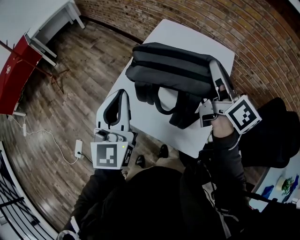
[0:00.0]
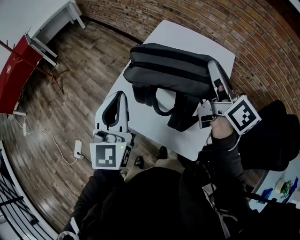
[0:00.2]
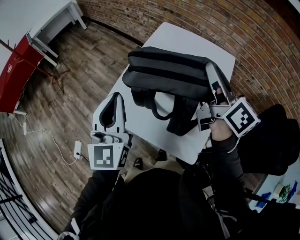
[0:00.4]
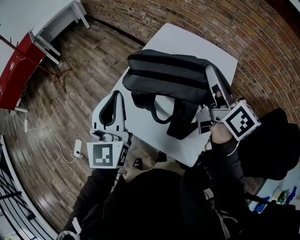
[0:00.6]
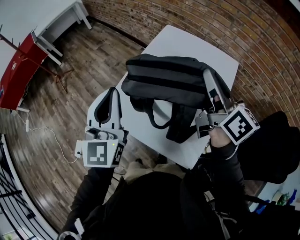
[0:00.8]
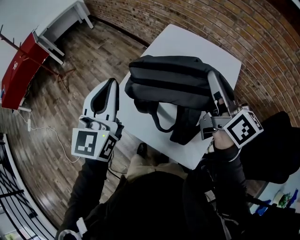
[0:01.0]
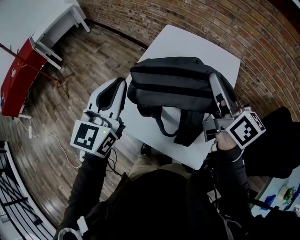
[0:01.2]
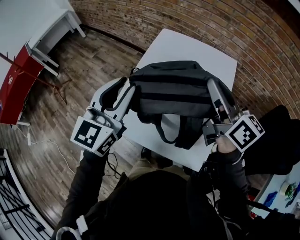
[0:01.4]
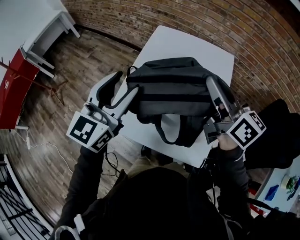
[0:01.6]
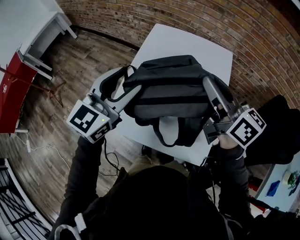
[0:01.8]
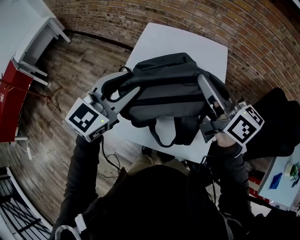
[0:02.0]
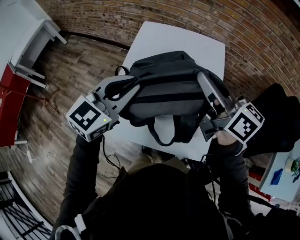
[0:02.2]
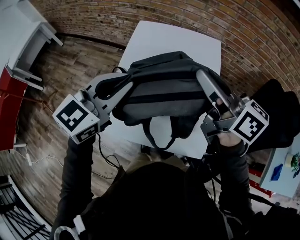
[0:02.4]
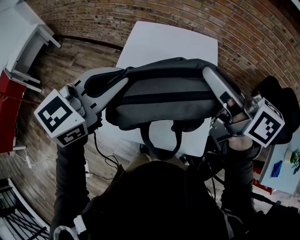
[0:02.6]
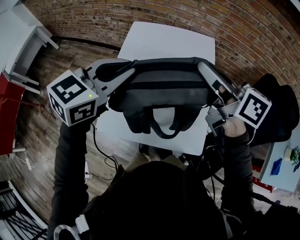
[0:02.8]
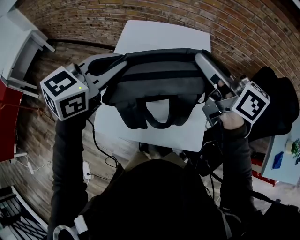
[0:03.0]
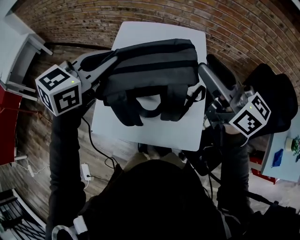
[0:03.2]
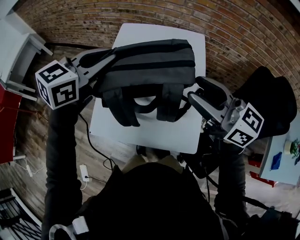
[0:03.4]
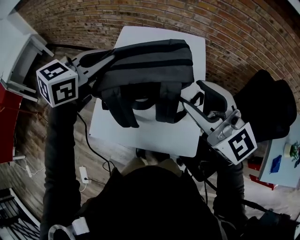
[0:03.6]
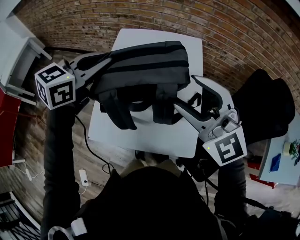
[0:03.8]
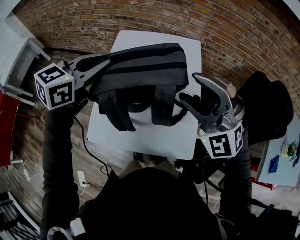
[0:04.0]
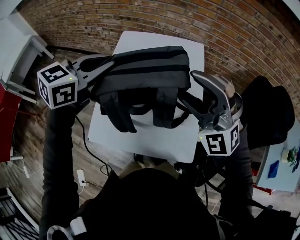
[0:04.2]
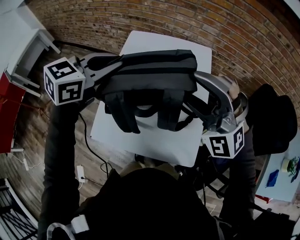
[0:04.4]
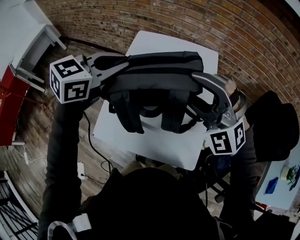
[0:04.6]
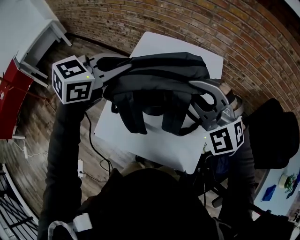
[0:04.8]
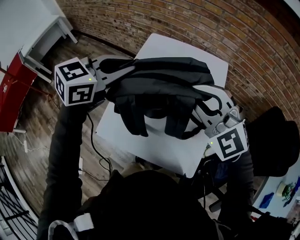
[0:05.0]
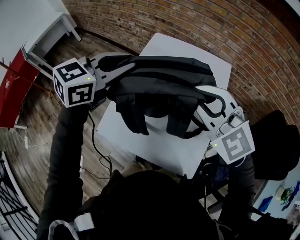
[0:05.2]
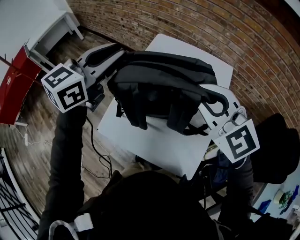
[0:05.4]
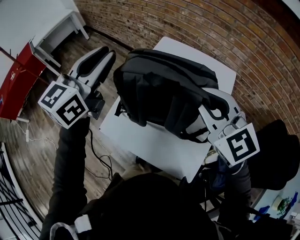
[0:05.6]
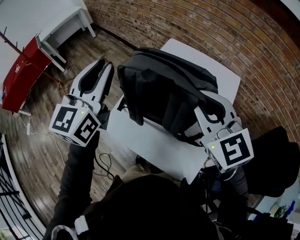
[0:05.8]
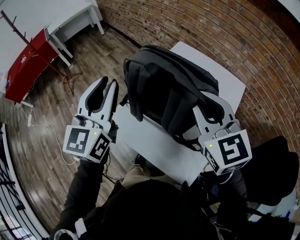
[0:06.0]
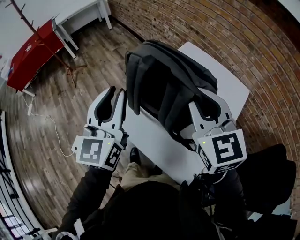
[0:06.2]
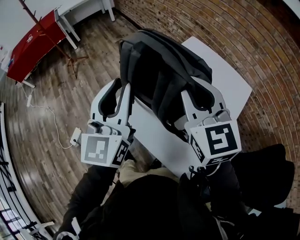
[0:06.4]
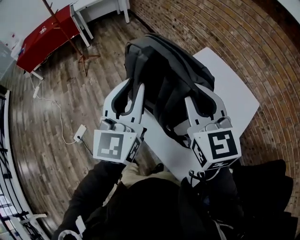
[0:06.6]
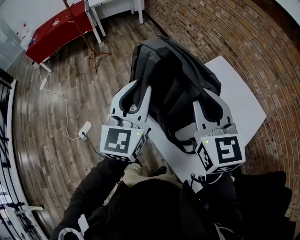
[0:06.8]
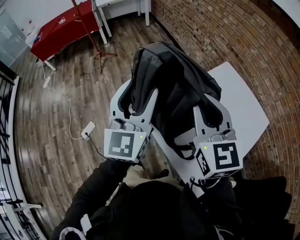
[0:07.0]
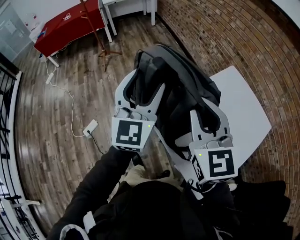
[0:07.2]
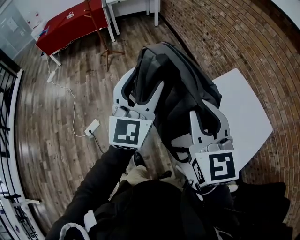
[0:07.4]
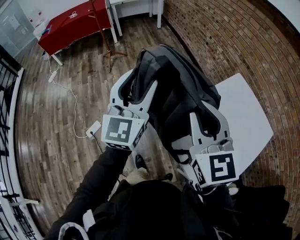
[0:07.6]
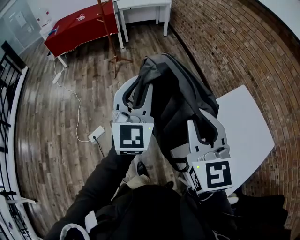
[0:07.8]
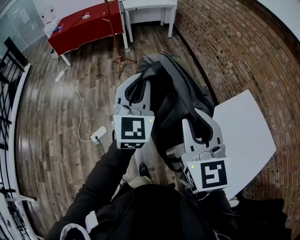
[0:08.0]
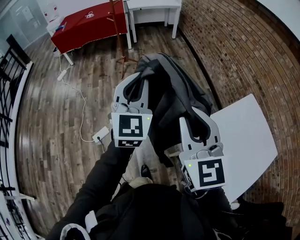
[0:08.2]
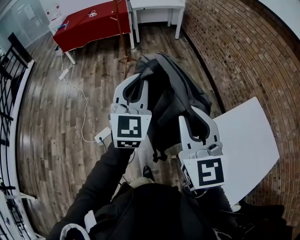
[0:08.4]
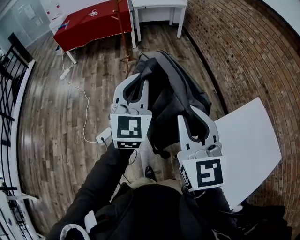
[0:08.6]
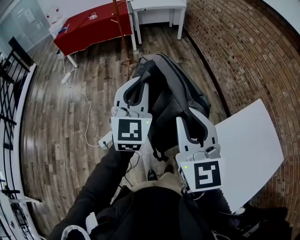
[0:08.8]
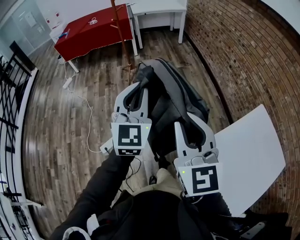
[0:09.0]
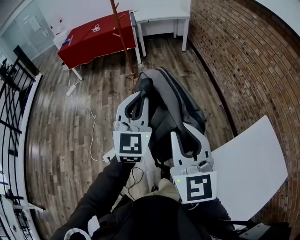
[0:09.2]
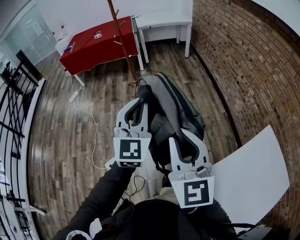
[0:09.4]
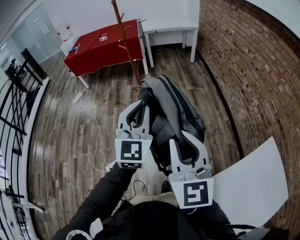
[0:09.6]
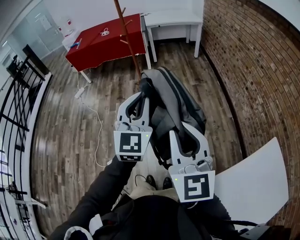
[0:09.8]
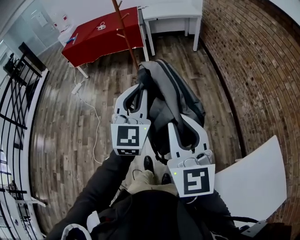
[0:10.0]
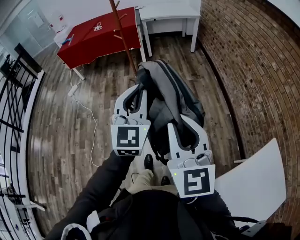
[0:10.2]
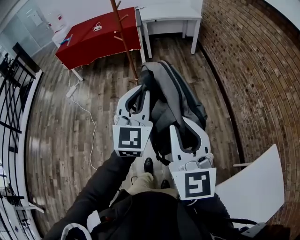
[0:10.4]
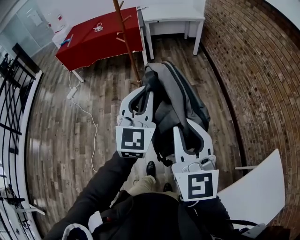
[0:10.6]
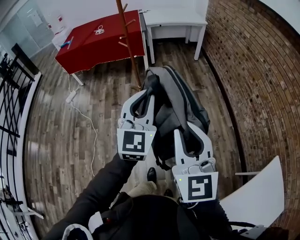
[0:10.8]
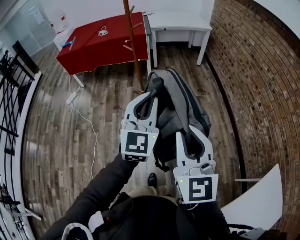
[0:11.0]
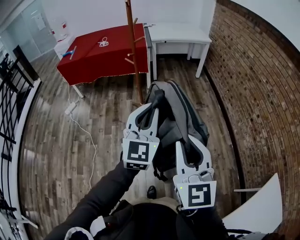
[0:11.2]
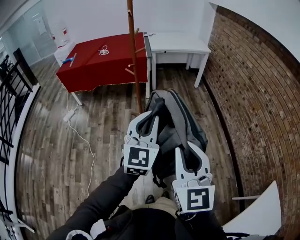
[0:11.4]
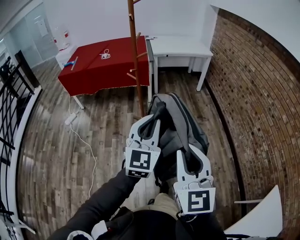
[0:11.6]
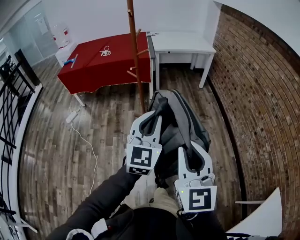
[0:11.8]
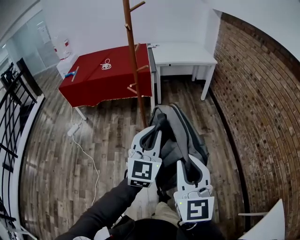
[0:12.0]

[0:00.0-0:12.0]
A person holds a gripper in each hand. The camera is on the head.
0:00.0 to 0:01.6: The left gripper is displaced forward by approximately 10 cm, turns by approximately 30 degrees, and opens.
0:01.6 to 0:03.0: The left gripper is displaced to the right by approximately 5 cm, swivels approximately 30 degrees, and closes its fingers.
0:03.0 to 0:04.4: The right gripper rotates around the line of its fingers by some 110 degrees, counterclockwise from behind, and opens up.
0:04.4 to 0:06.0: The right gripper shifts by about 5 cm, twists about 60 degrees clockwise, seen from behind, and closes its fingers. The left gripper ends up approximately 15 cm from where it was, and rotates approximately 60 degrees.
0:06.0 to 0:07.6: The grippers both shift to the left by about 25 cm. The left gripper swivels some 20 degrees, and opens its fingers.
0:07.6 to 0:09.0: The right gripper is displaced to the left and forward by some 20 cm; the left gripper goes roughly 20 cm forward and to the left, and closes.
0:09.0 to 0:10.4: The grippers both shift forward by about 30 cm.
0:10.4 to 0:12.0: Both grippers move forward and to the left, some 30 cm.

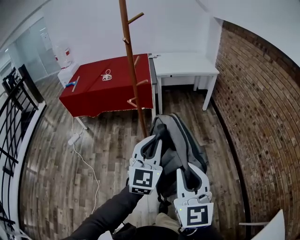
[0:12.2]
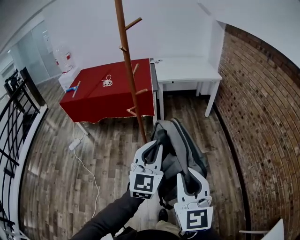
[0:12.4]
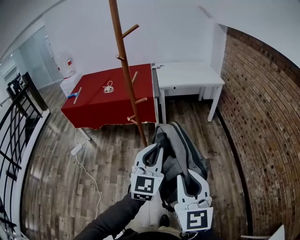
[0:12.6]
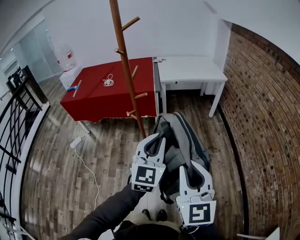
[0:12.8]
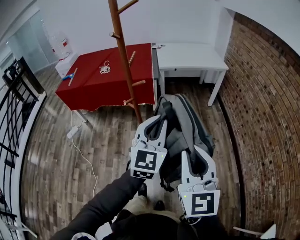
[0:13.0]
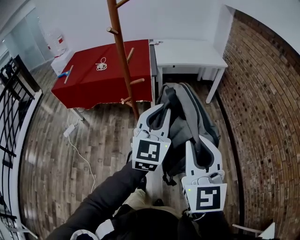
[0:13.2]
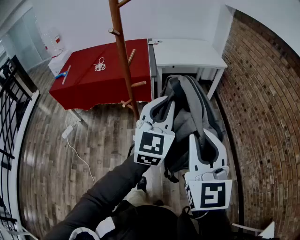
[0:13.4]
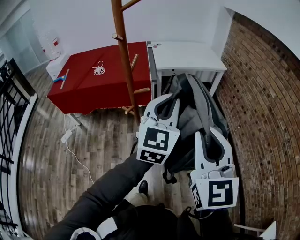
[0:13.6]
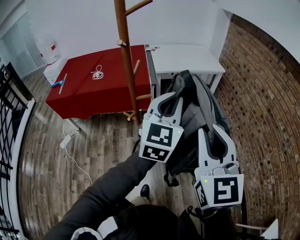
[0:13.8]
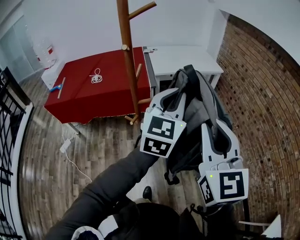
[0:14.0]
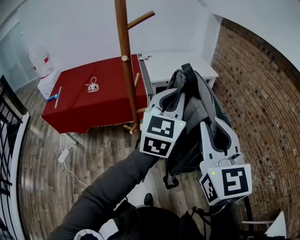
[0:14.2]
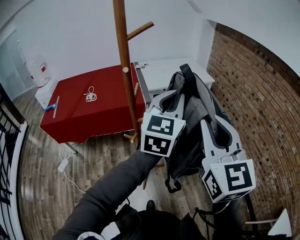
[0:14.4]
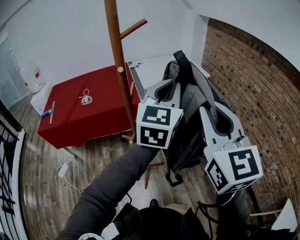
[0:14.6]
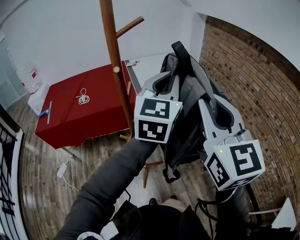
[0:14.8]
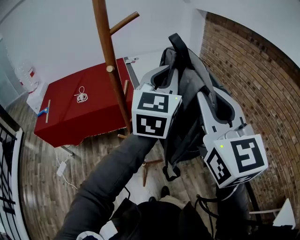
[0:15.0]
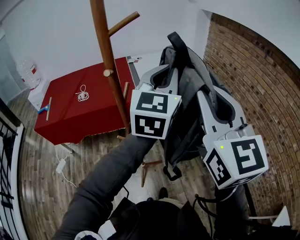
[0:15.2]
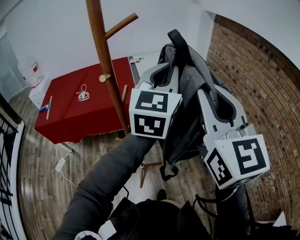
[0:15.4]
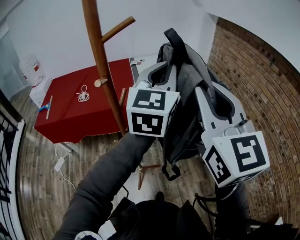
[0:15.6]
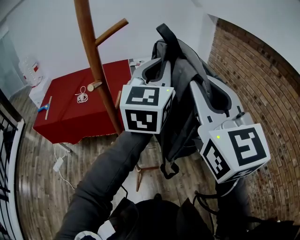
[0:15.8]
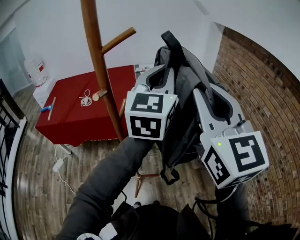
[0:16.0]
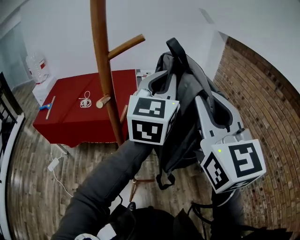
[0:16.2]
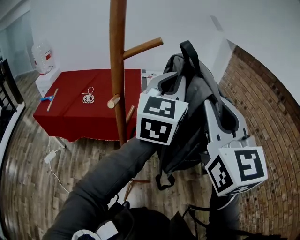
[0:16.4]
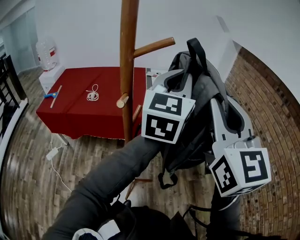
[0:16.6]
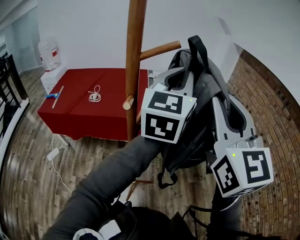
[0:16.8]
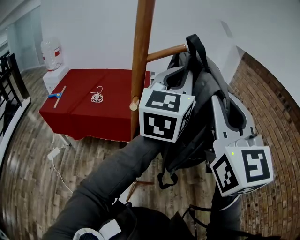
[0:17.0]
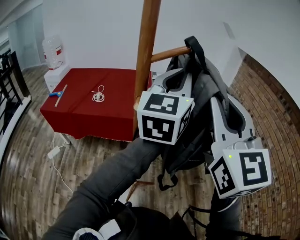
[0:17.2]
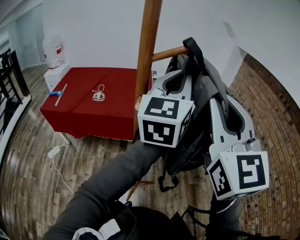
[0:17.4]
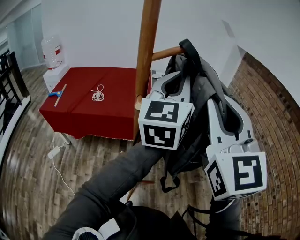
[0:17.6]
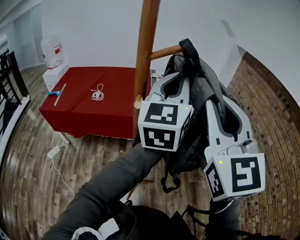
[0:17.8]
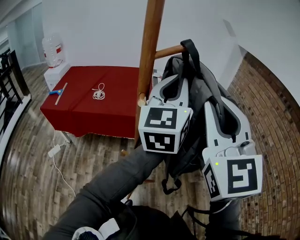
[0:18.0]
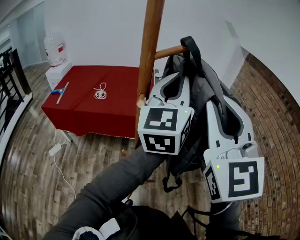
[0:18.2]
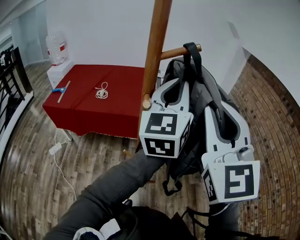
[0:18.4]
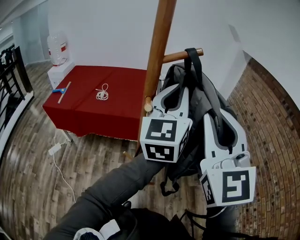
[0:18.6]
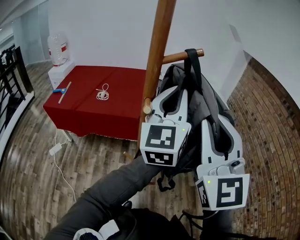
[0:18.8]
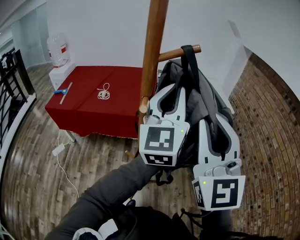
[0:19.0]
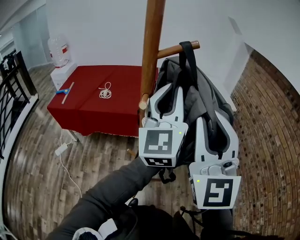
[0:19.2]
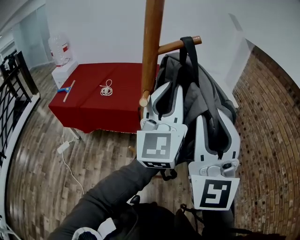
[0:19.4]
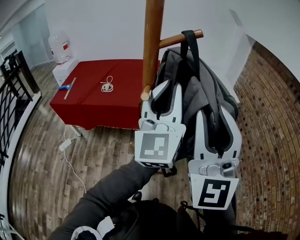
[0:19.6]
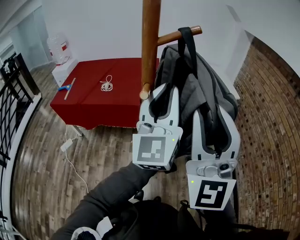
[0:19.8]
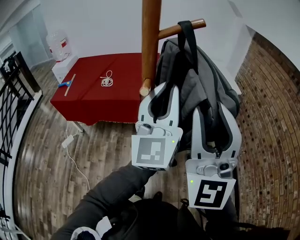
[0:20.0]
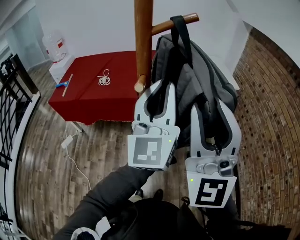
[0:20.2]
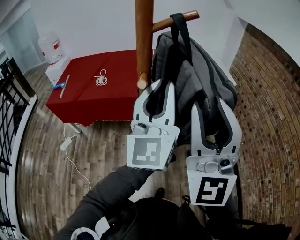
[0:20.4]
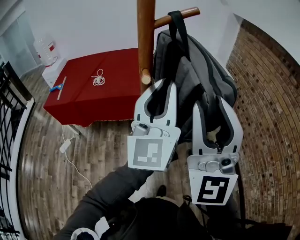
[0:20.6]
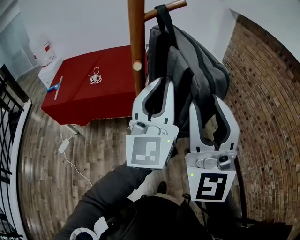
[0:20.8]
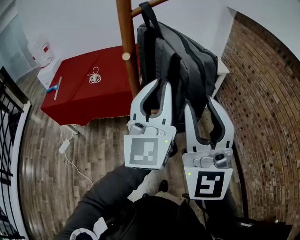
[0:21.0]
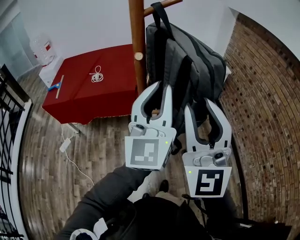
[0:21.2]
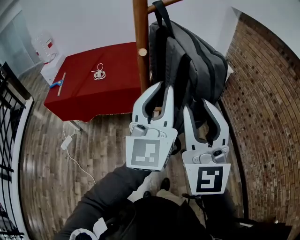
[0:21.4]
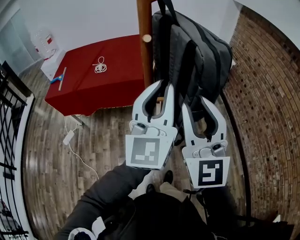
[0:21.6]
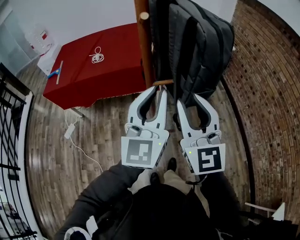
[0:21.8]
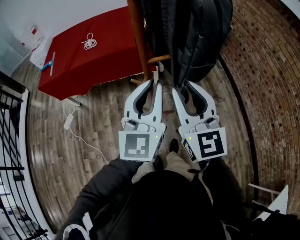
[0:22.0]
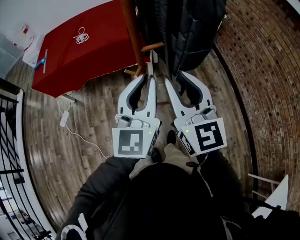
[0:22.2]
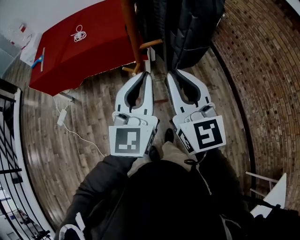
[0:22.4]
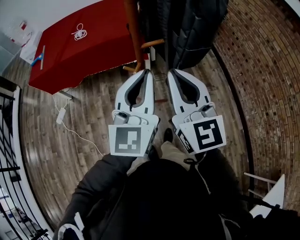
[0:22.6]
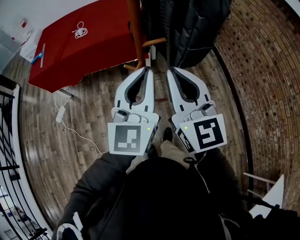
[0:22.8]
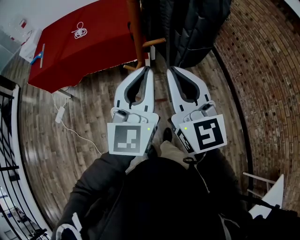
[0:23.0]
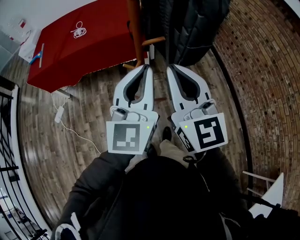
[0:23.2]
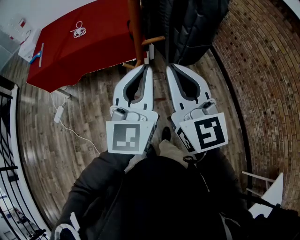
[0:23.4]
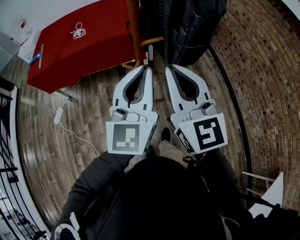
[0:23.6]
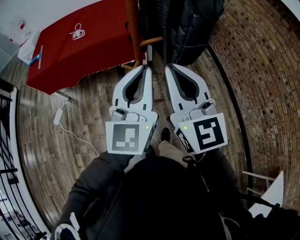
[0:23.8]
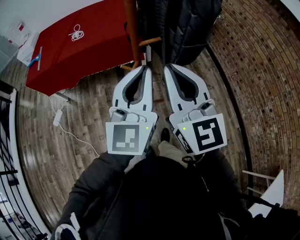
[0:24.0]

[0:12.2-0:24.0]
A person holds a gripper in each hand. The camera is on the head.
0:12.2 to 0:13.6: The grippers both shift forward by roughly 25 cm.
0:13.6 to 0:15.2: The left gripper heads forward and upward, covering roughly 20 cm. The right gripper moves forward, upward and to the left, about 20 cm.
0:15.2 to 0:16.6: The two grippers go about 10 cm forward and upward.
0:16.6 to 0:18.2: Both grippers move to the left, roughly 5 cm.
0:18.2 to 0:19.6: The left gripper ends up roughly 5 cm from where it was. The right gripper moves downward, some 5 cm.
0:19.6 to 0:21.0: The right gripper travels downward by some 5 cm, while the left gripper goes about 5 cm backward.
0:21.0 to 0:22.6: The left gripper heads downward and backward, covering about 20 cm, while the right gripper moves downward and to the left, approximately 15 cm, swivels some 30 degrees, and closes its fingers.
0:22.6 to 0:24.0: The grippers stay close to where they were, moving slightly.
